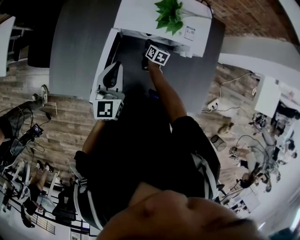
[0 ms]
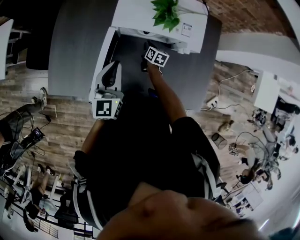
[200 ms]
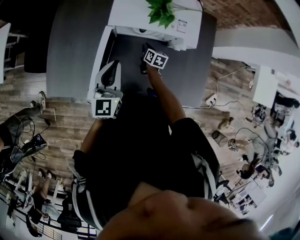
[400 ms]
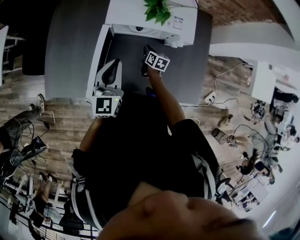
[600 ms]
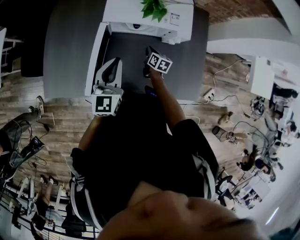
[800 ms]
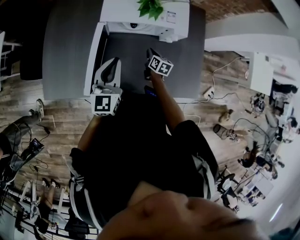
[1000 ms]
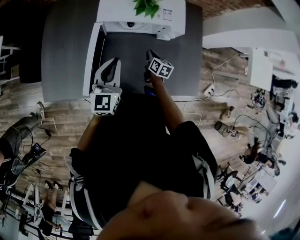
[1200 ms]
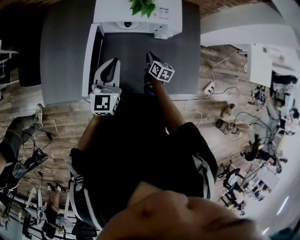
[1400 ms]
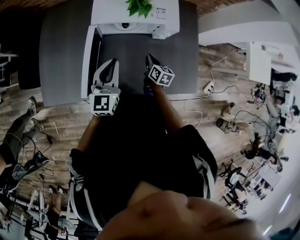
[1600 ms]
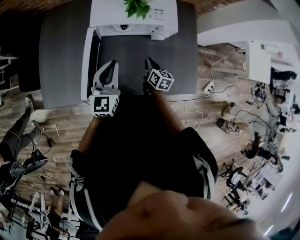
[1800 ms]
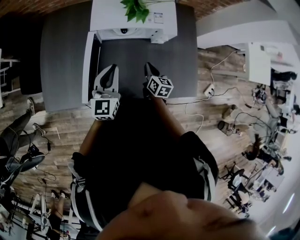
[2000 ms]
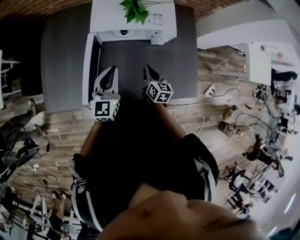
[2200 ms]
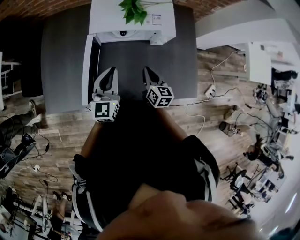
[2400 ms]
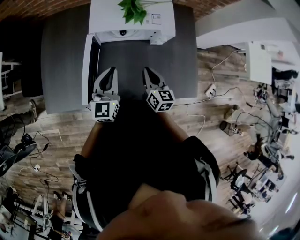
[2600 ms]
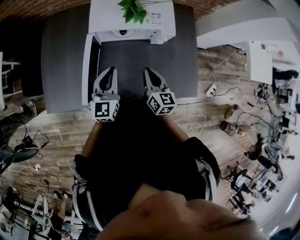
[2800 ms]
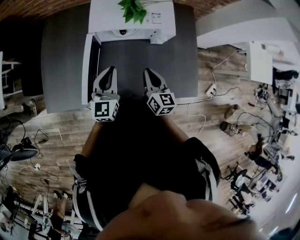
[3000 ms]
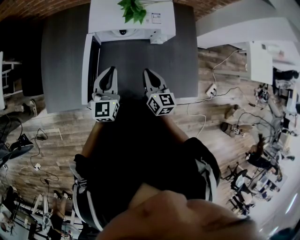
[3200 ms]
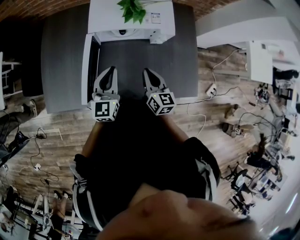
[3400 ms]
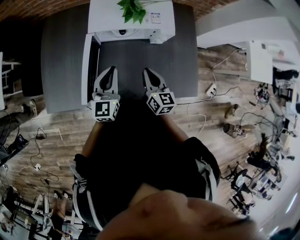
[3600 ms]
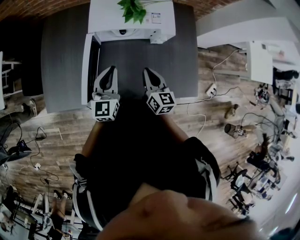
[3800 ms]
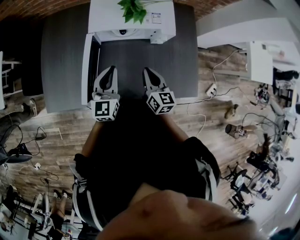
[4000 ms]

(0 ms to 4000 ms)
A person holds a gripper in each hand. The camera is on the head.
0 ms - 1400 ms: The left gripper moves roughly 10 cm.

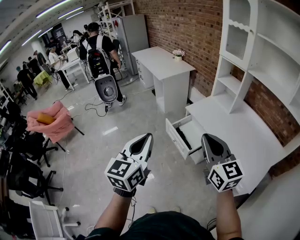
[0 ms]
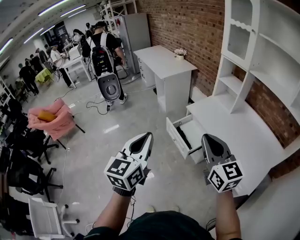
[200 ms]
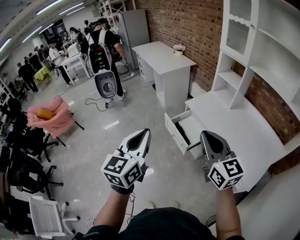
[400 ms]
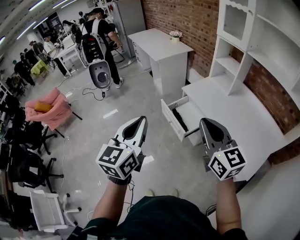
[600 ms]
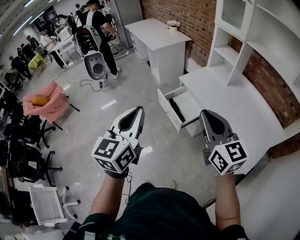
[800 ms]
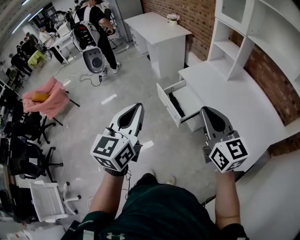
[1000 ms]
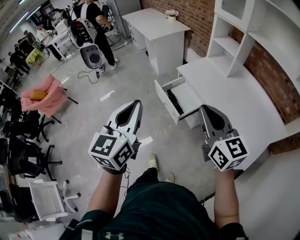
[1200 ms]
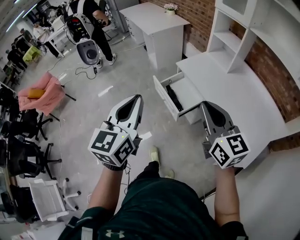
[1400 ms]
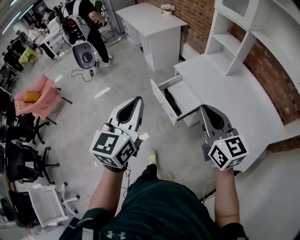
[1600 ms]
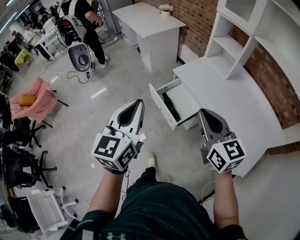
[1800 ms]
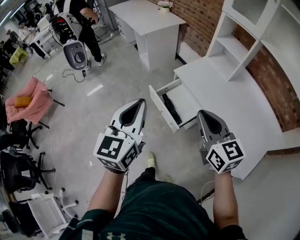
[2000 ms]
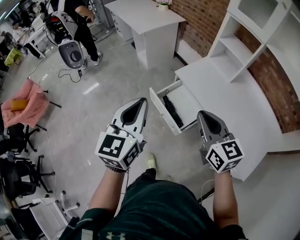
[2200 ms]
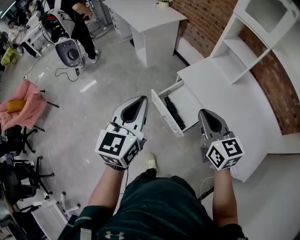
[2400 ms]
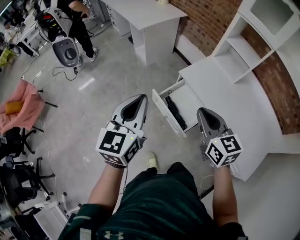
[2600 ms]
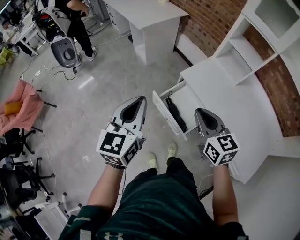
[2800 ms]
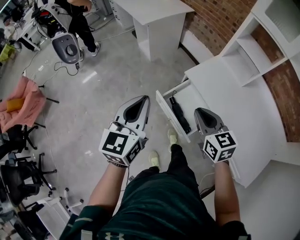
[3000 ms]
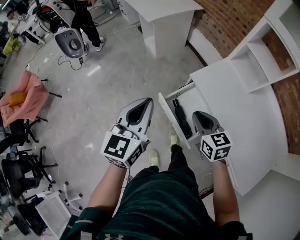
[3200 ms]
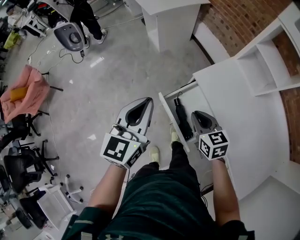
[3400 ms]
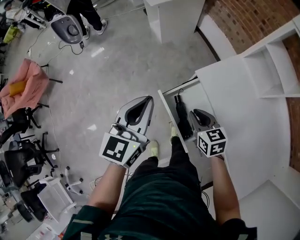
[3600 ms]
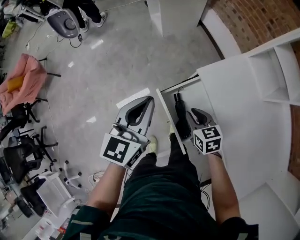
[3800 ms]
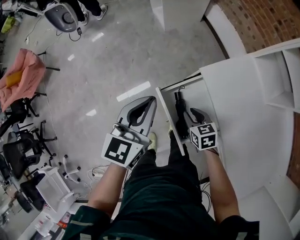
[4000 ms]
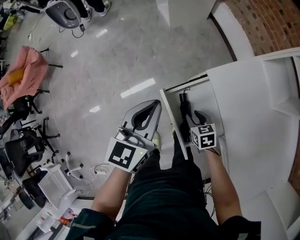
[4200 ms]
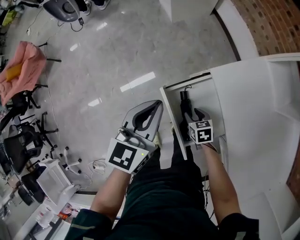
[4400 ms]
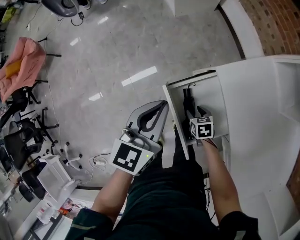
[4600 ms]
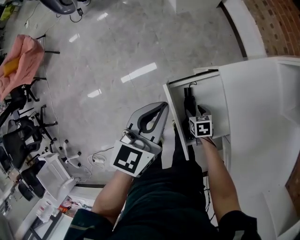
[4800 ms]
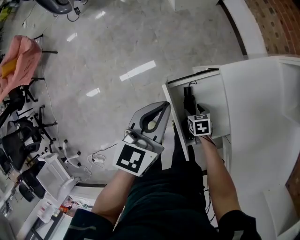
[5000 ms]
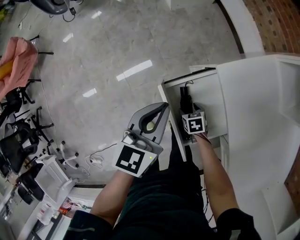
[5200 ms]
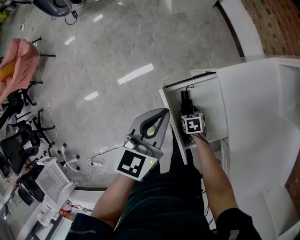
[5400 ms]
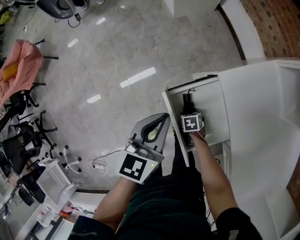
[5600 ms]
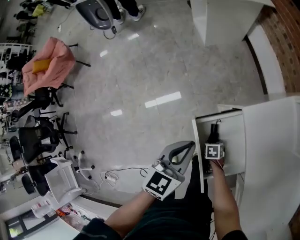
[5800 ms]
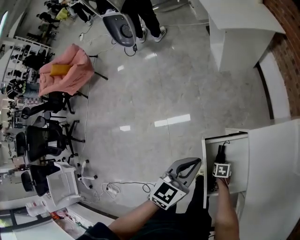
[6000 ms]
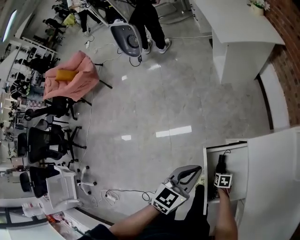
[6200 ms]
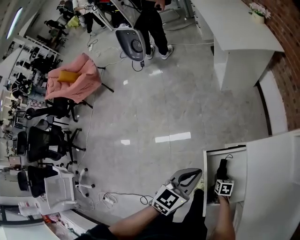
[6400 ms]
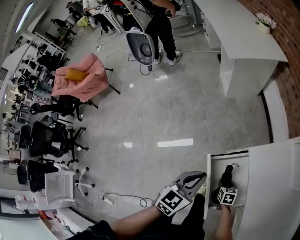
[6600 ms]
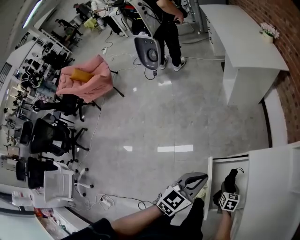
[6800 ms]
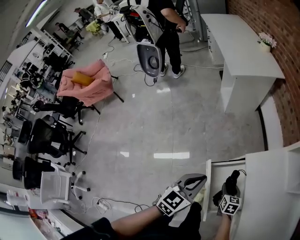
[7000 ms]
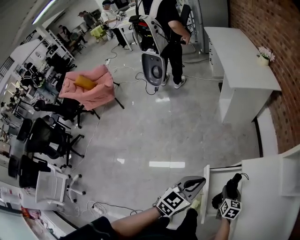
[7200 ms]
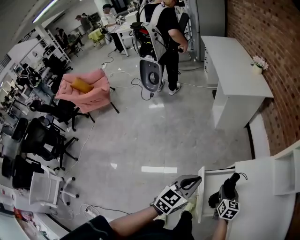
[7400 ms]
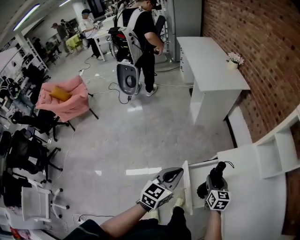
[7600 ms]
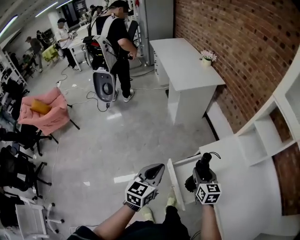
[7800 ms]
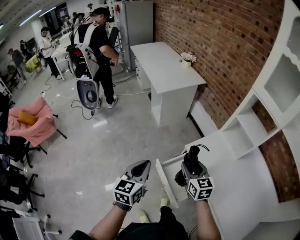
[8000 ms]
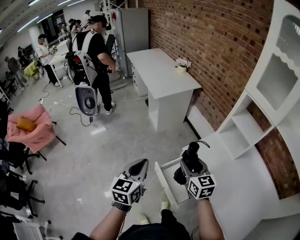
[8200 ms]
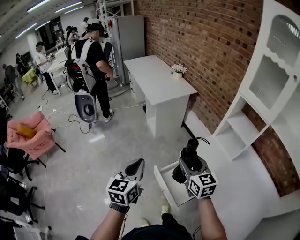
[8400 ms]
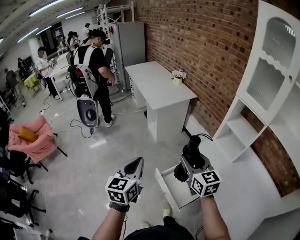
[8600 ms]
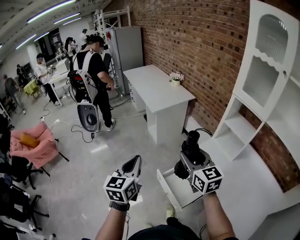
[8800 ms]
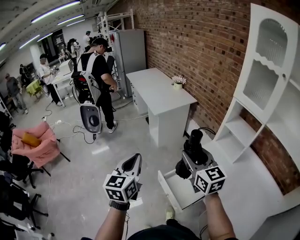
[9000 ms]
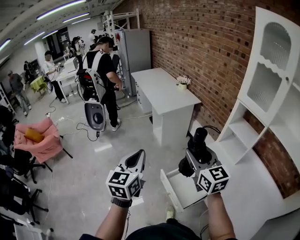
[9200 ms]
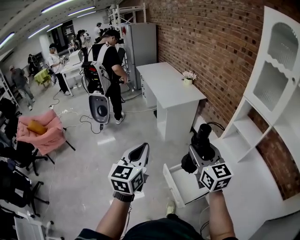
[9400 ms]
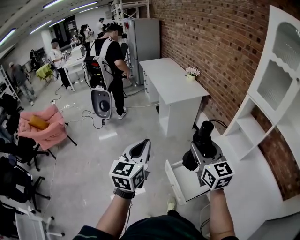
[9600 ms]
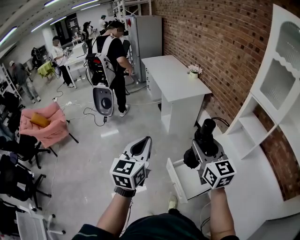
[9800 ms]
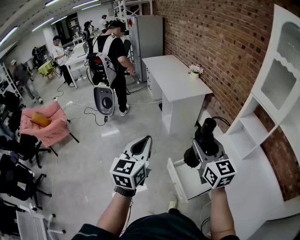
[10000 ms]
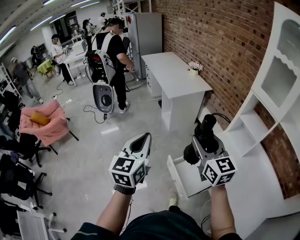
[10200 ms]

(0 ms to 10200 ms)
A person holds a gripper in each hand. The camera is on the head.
0 ms - 1400 ms: The right gripper goes about 10 cm to the right and downward, while the left gripper goes roughly 10 cm to the right.
1400 ms - 3000 ms: The left gripper goes about 30 cm forward. Meanwhile the right gripper moves forward and downward, about 35 cm, and turns by approximately 20 degrees.
3000 ms - 4400 ms: The left gripper travels downward and forward by some 25 cm. Meanwhile the right gripper goes some 40 cm downward, tips its fingers downward by about 30 degrees, and opens its fingers.
4400 ms - 5800 ms: The right gripper heads downward, covering some 10 cm, and rotates about 30 degrees. The left gripper shifts approximately 5 cm downward.
5800 ms - 7200 ms: The left gripper shifts approximately 10 cm upward; the right gripper heads upward, covering some 25 cm, and tips its fingers upward by some 40 degrees.
7200 ms - 8800 ms: The right gripper is displaced upward by some 40 cm, and tilts its fingers roughly 30 degrees upward; the left gripper travels upward and to the left by roughly 25 cm.
8800 ms - 10200 ms: The left gripper ends up about 5 cm from where it was. The right gripper changes place by about 5 cm.

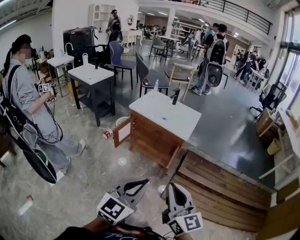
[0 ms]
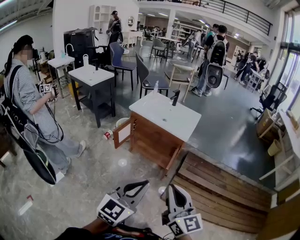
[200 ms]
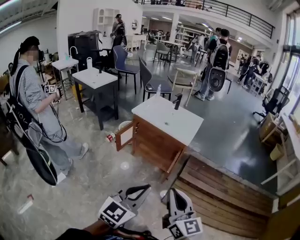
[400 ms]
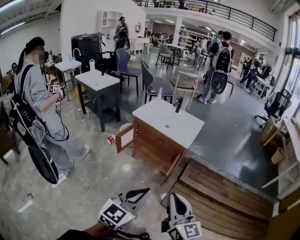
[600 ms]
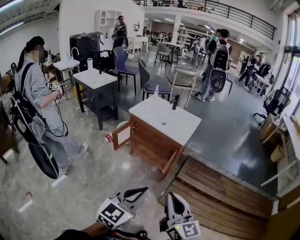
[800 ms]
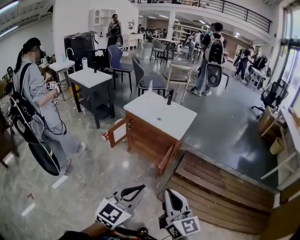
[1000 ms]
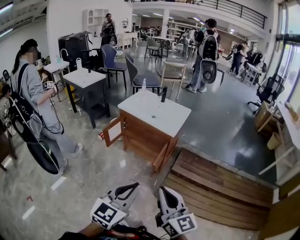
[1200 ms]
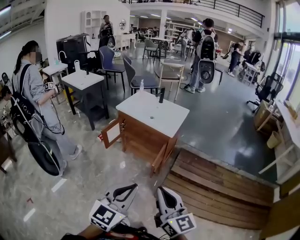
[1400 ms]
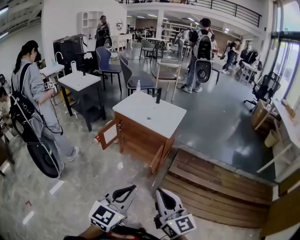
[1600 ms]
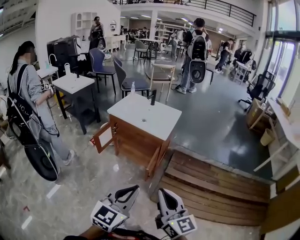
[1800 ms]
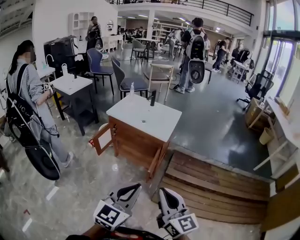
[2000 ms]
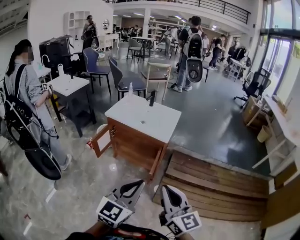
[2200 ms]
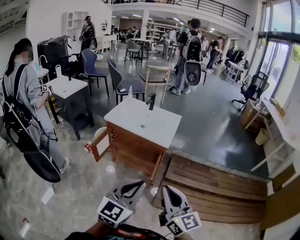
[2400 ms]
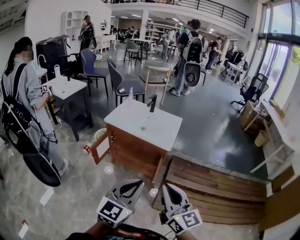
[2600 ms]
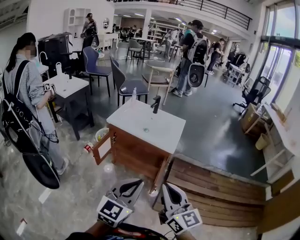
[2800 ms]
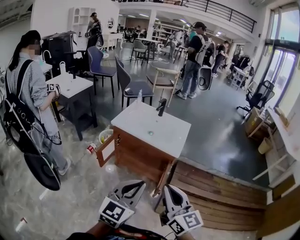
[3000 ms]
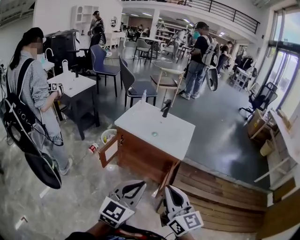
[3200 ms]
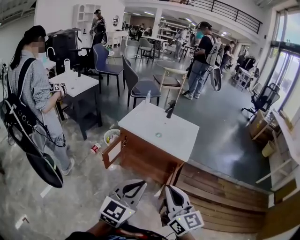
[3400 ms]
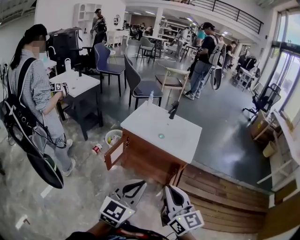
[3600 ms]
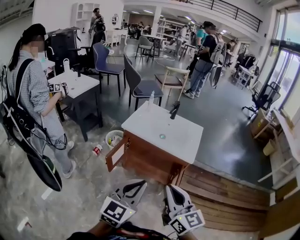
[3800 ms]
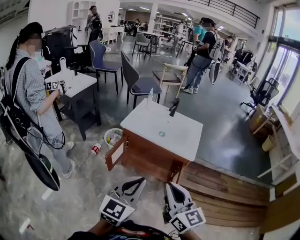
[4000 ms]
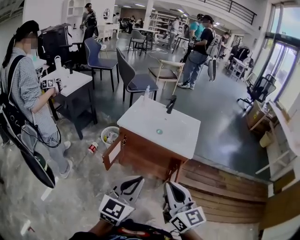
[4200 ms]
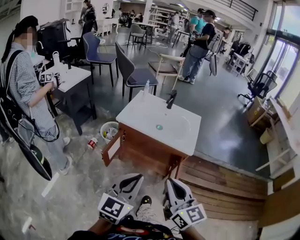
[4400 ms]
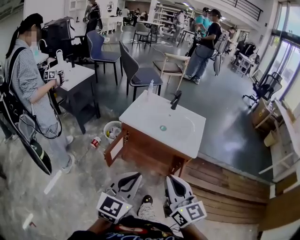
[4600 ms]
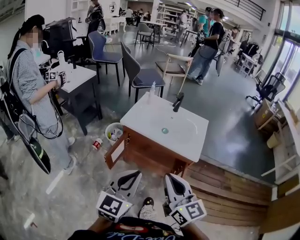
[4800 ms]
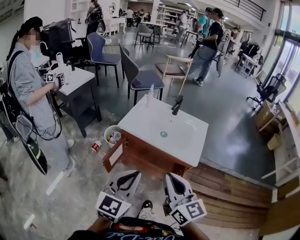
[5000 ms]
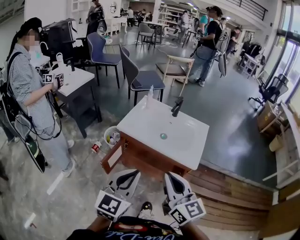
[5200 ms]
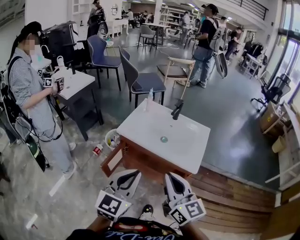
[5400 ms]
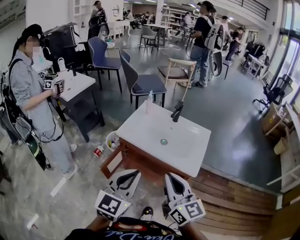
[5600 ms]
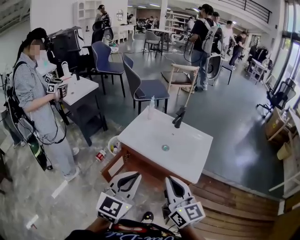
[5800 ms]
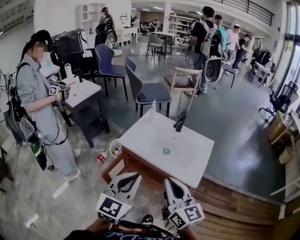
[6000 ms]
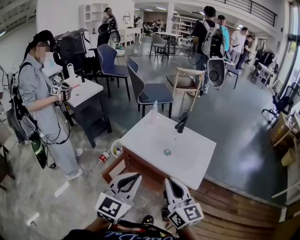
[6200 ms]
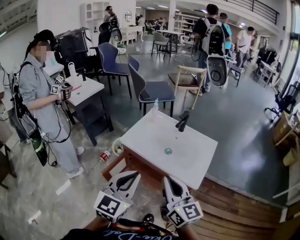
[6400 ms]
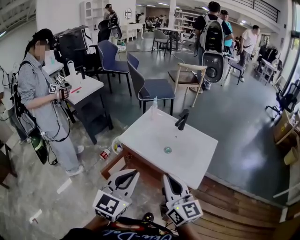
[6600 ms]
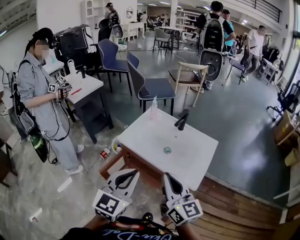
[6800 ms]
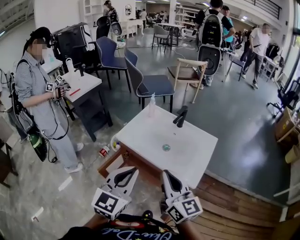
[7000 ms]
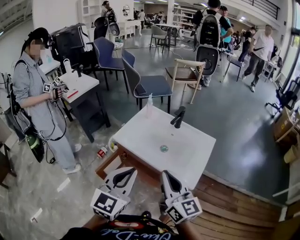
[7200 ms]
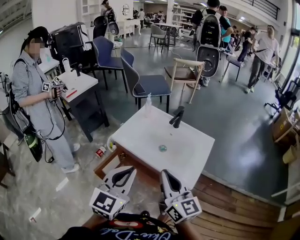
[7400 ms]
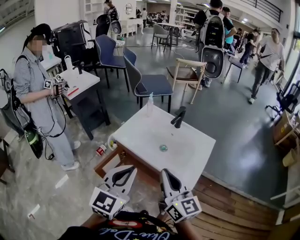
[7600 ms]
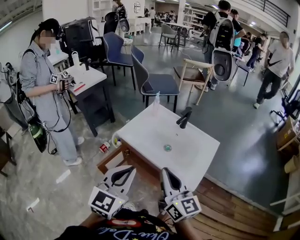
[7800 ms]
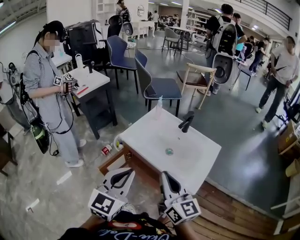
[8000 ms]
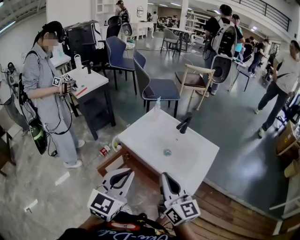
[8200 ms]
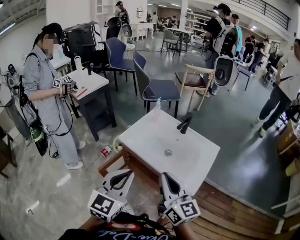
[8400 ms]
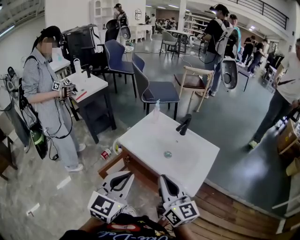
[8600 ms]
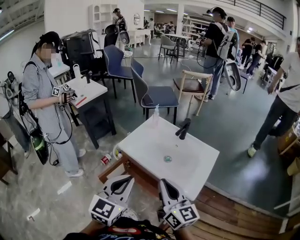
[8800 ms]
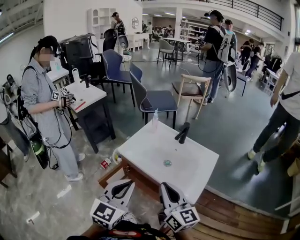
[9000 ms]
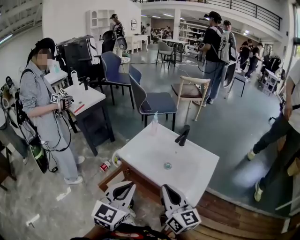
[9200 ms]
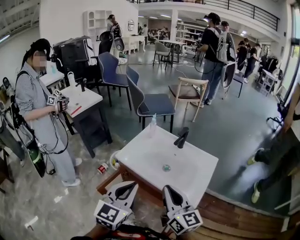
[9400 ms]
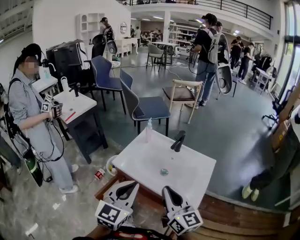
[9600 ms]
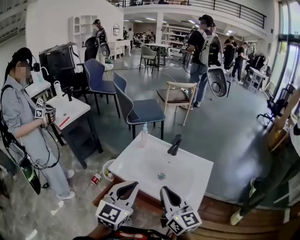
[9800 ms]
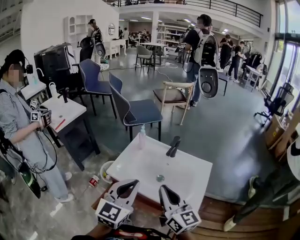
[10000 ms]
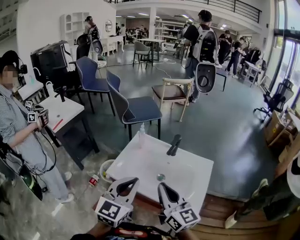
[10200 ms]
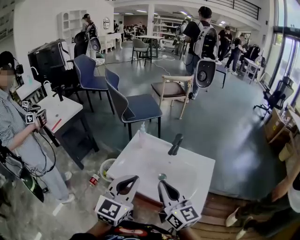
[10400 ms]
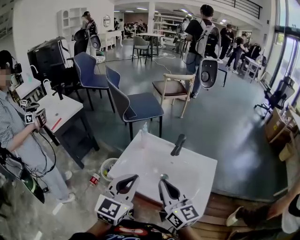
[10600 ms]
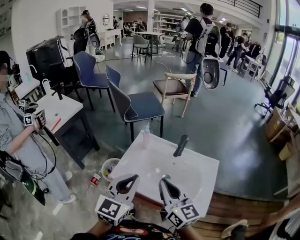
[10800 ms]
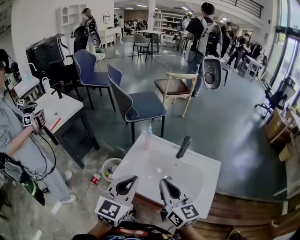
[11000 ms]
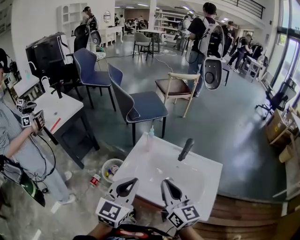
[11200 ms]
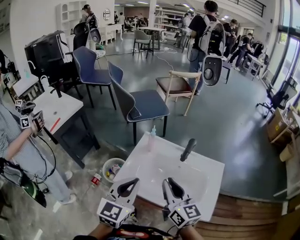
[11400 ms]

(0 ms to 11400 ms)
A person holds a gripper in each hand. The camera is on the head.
0 ms - 1400 ms: The grippers both shift to the right by roughly 10 cm.
1400 ms - 2800 ms: The two grippers go about 20 cm forward and to the left.
2800 ms - 4200 ms: Both grippers move to the left and forward, approximately 15 cm.
4200 ms - 5600 ms: The two grippers go about 15 cm forward.
5600 ms - 7200 ms: Both grippers move forward, about 5 cm.
7200 ms - 8600 ms: There are only small adjustments of the grippers.
8600 ms - 10000 ms: Both grippers move forward, about 10 cm.
10000 ms - 11400 ms: The two grippers go some 10 cm forward and to the left.
